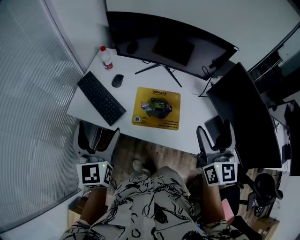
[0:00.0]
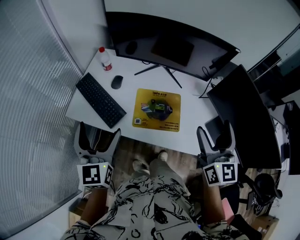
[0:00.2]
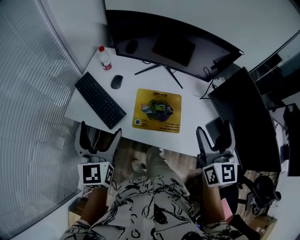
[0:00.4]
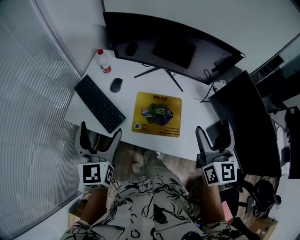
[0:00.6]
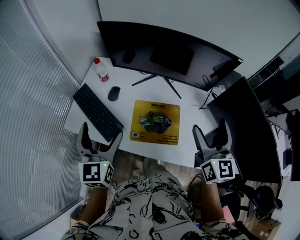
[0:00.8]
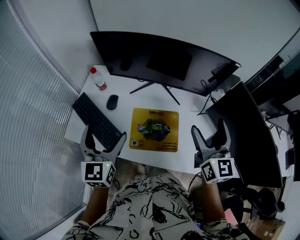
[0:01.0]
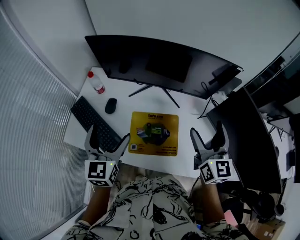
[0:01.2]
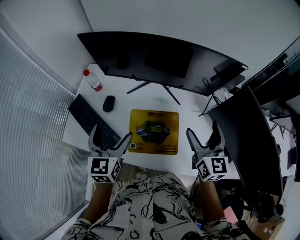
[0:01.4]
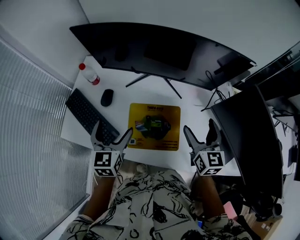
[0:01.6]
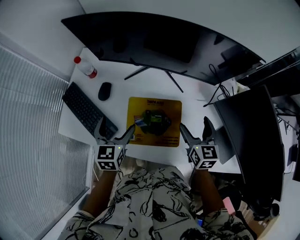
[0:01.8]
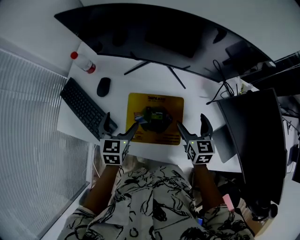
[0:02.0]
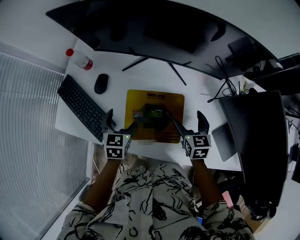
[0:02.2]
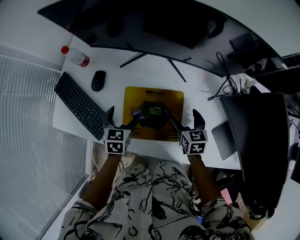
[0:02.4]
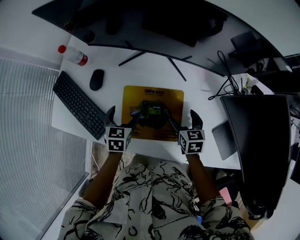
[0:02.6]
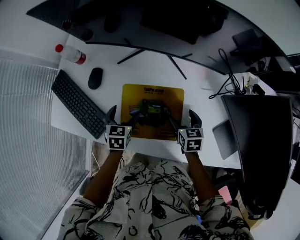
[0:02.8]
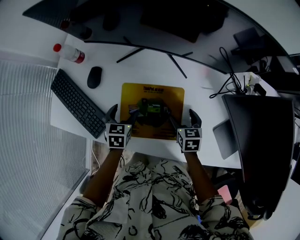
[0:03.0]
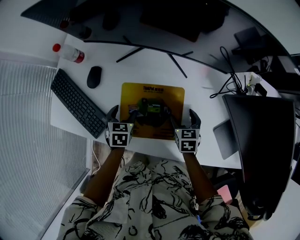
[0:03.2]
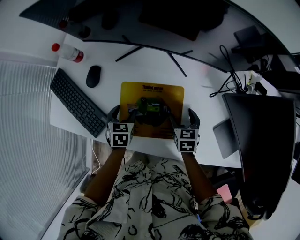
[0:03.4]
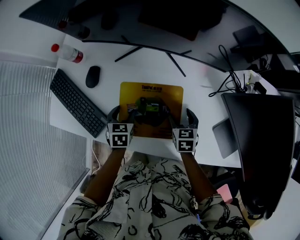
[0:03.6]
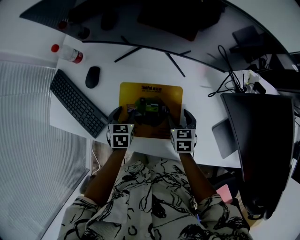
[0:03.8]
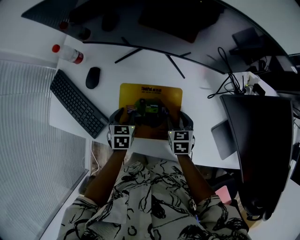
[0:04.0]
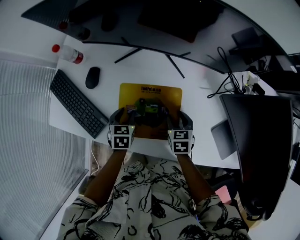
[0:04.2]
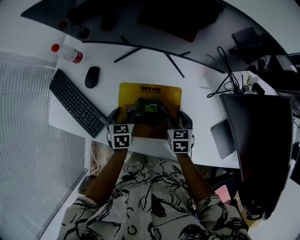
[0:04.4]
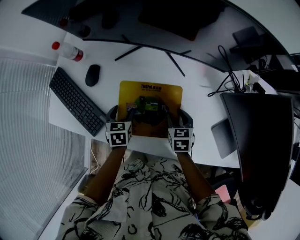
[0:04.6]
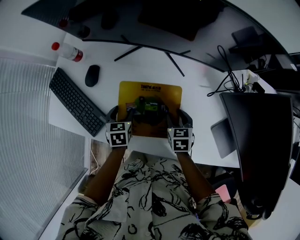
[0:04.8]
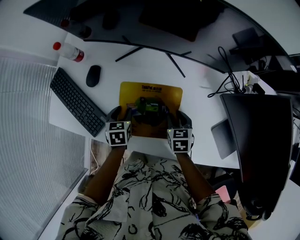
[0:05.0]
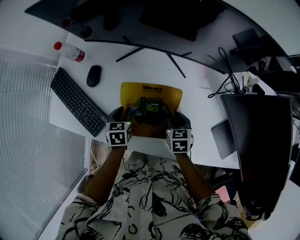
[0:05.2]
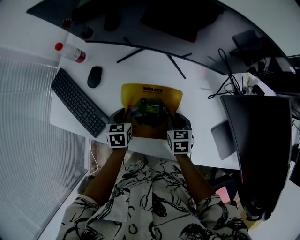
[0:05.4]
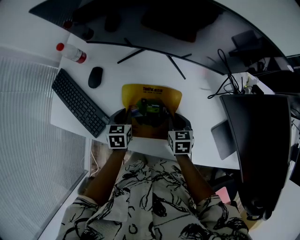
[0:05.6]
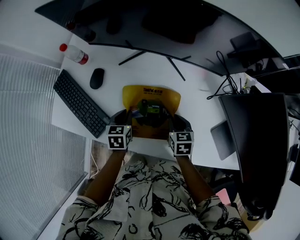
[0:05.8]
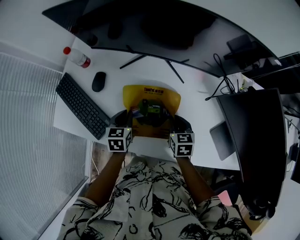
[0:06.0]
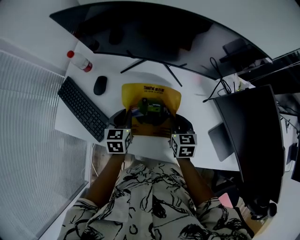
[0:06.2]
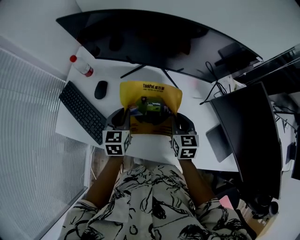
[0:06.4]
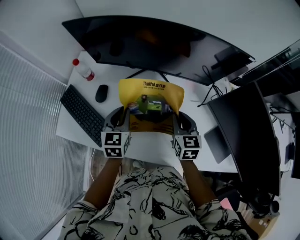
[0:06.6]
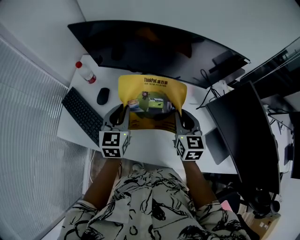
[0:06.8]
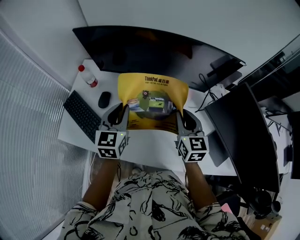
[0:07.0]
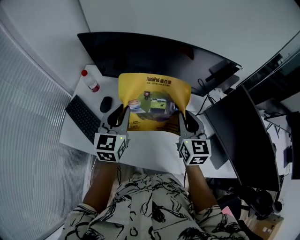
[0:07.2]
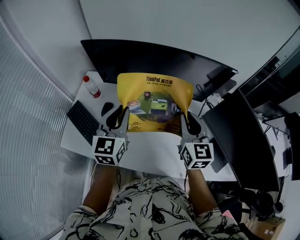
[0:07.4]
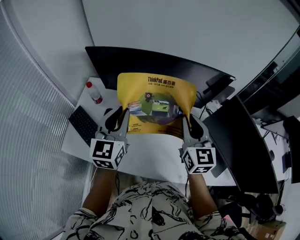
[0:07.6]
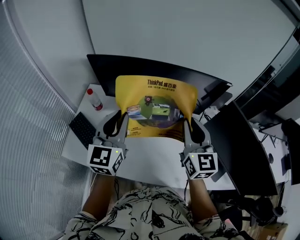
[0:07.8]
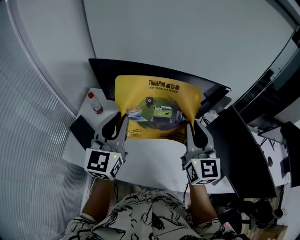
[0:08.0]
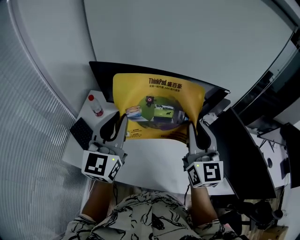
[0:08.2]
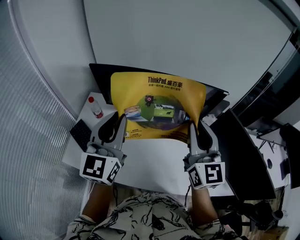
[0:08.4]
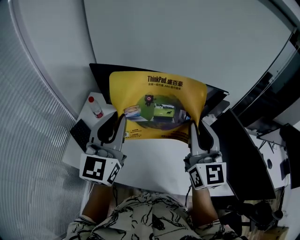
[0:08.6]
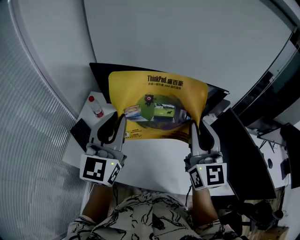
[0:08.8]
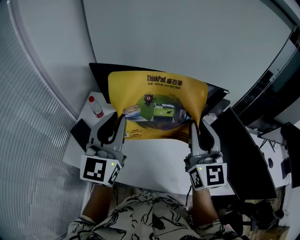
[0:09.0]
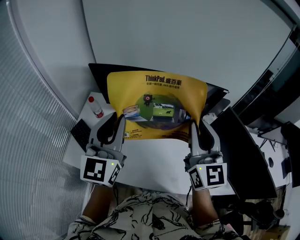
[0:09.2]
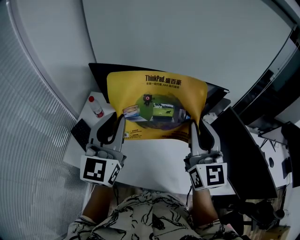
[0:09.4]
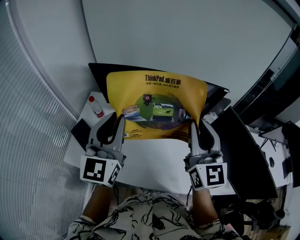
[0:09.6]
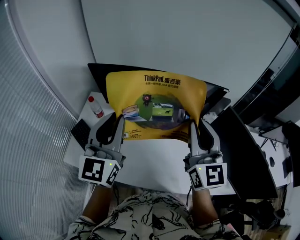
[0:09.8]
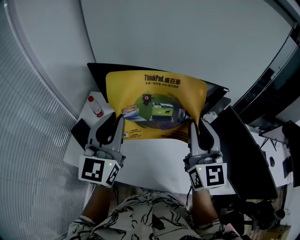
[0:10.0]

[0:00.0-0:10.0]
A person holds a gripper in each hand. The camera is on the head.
0:00.0 to 0:01.4: The left gripper is displaced forward, downward and to the right by roughly 20 cm, while the right gripper heads forward and downward, covering about 20 cm.
0:01.4 to 0:02.8: The grippers both shift downward by roughly 30 cm. The right gripper tilts its fingers about 40 degrees downward; the left gripper points its fingers roughly 30 degrees further downward.
0:02.8 to 0:04.2: The left gripper closes its fingers; the right gripper closes.
0:04.2 to 0:05.8: The grippers move only a little.
0:05.8 to 0:07.2: Both grippers travel together upward, approximately 30 cm. The right gripper tips its fingers upward by about 40 degrees. The left gripper tips its fingers upward by about 40 degrees.
0:07.2 to 0:08.6: The two grippers go about 20 cm upward. The right gripper swivels about 20 degrees, while the left gripper swivels about 20 degrees.
0:08.6 to 0:10.0: Neither gripper changes place.

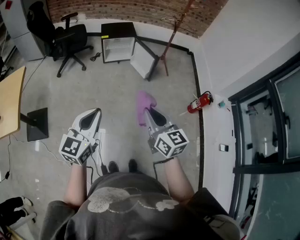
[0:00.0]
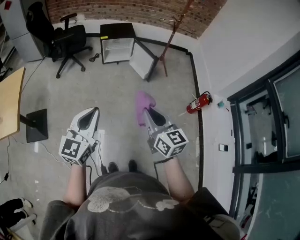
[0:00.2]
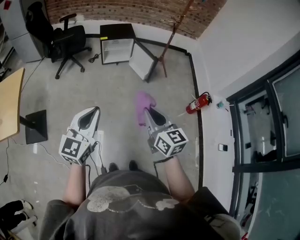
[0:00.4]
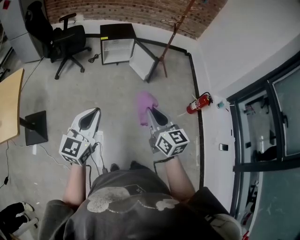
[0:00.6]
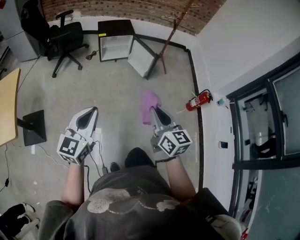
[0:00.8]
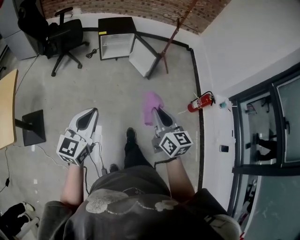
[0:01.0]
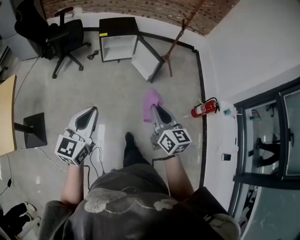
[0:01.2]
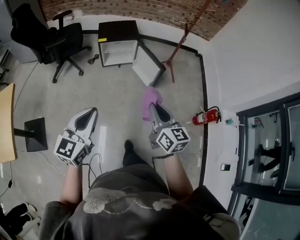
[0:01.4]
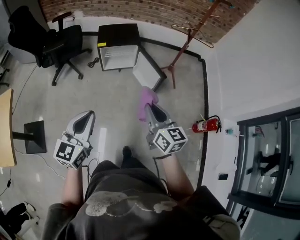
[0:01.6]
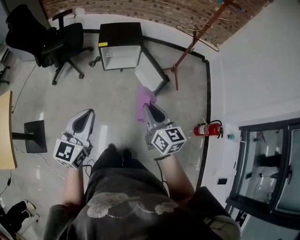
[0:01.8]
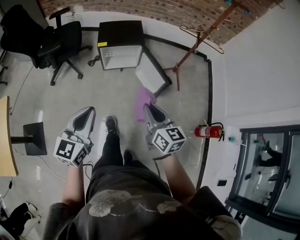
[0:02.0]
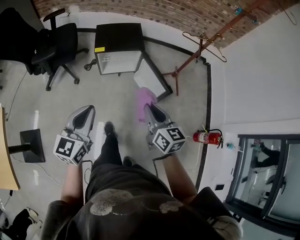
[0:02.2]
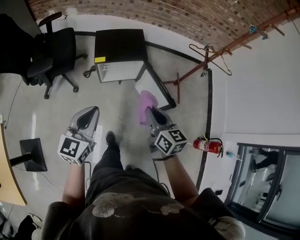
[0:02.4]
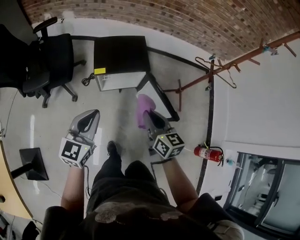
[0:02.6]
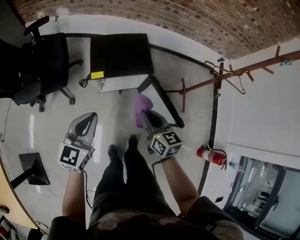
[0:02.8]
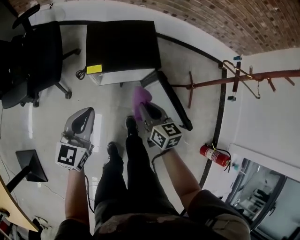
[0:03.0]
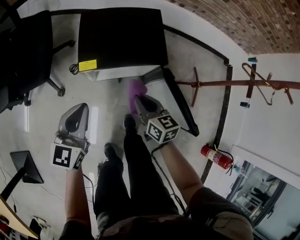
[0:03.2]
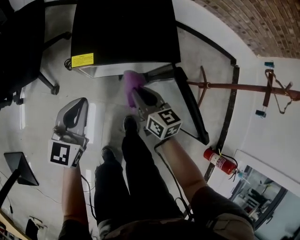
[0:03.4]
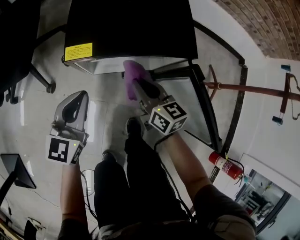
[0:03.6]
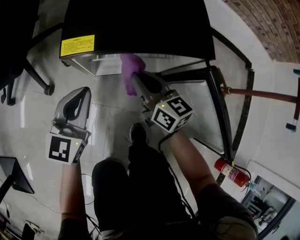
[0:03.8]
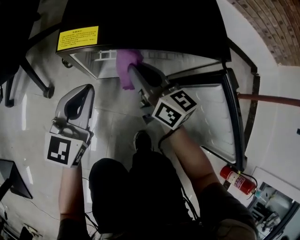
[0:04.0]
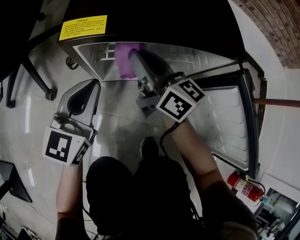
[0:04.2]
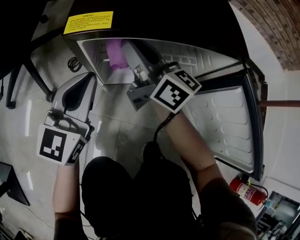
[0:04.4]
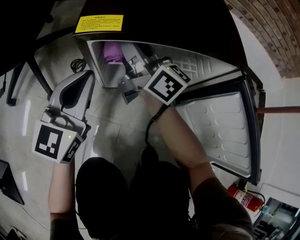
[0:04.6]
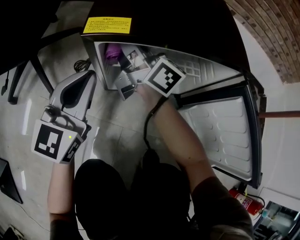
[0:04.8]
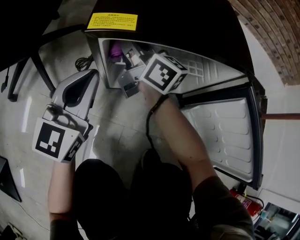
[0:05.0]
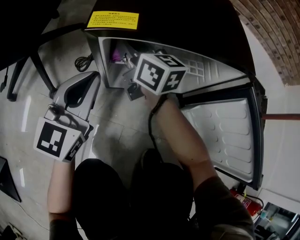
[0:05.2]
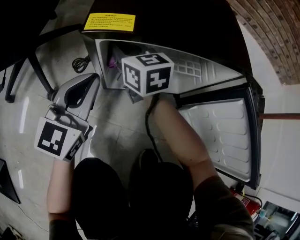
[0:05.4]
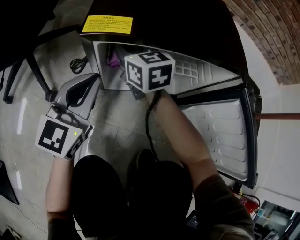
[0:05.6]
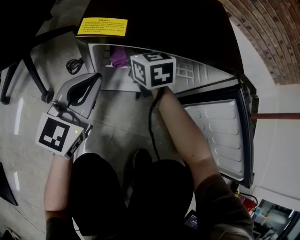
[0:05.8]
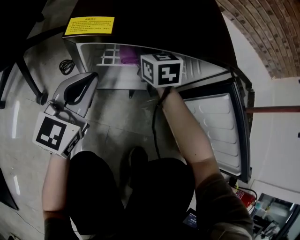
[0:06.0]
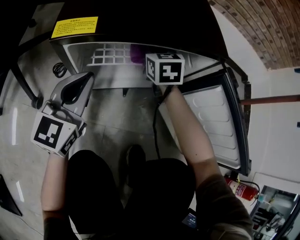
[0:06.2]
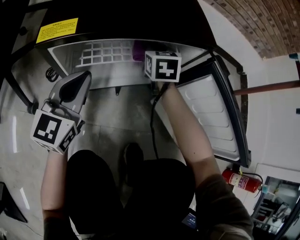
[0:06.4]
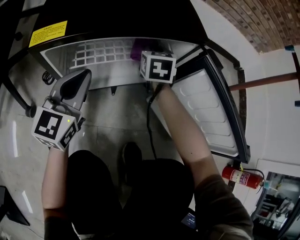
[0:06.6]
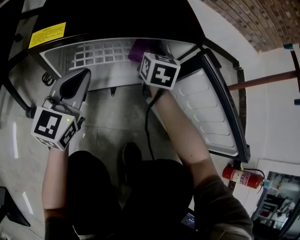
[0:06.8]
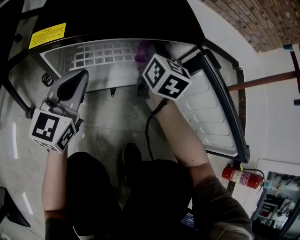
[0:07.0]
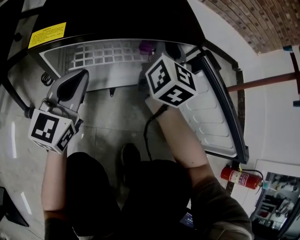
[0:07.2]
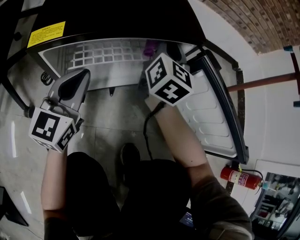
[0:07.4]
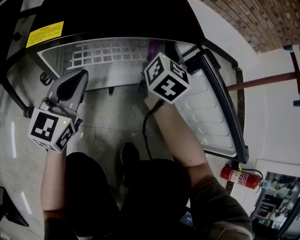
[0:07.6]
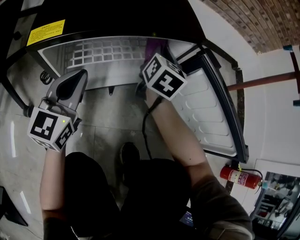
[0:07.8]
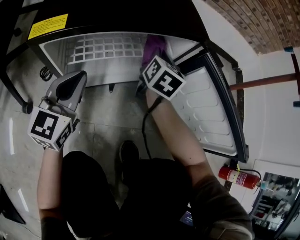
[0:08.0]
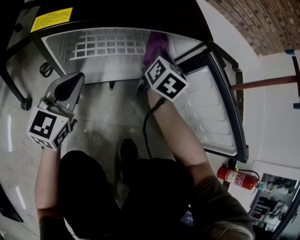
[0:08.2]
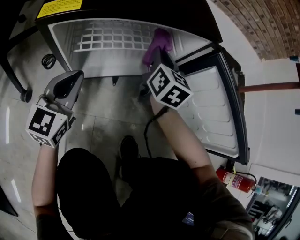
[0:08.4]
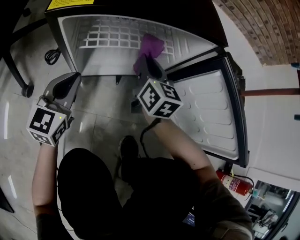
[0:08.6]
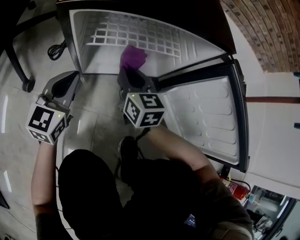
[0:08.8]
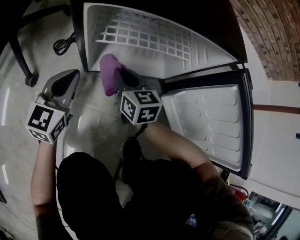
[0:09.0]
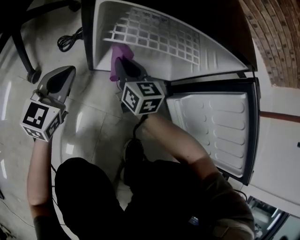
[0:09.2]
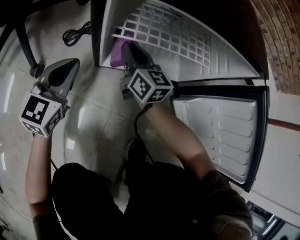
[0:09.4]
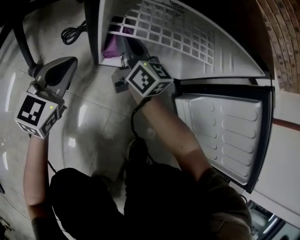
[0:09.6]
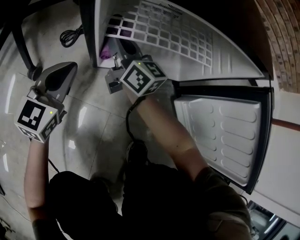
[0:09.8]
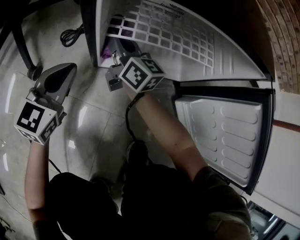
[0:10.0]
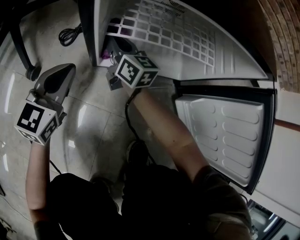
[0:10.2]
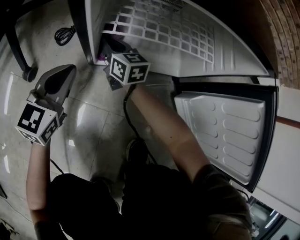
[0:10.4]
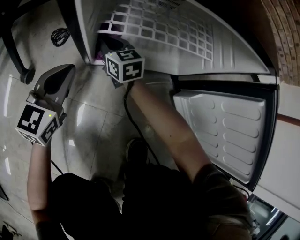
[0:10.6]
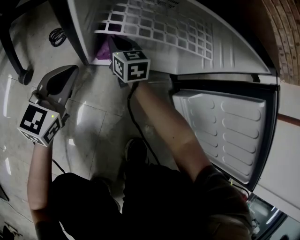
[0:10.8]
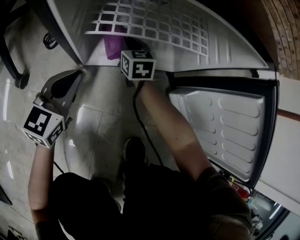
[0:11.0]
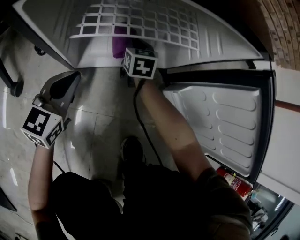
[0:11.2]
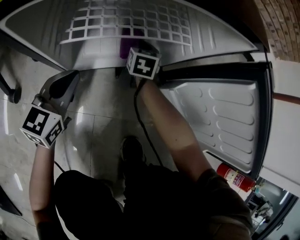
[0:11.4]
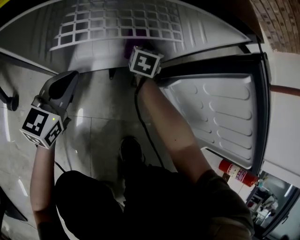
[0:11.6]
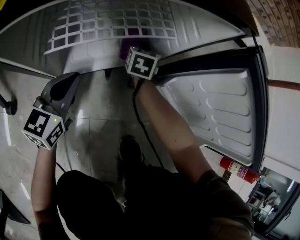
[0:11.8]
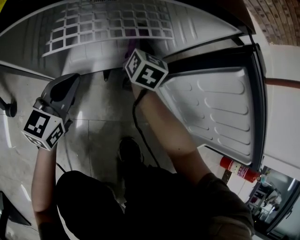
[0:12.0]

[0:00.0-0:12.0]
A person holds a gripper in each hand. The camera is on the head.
0:00.0 to 0:01.6: Both grippers move forward, about 30 cm.
0:01.6 to 0:03.0: The two grippers travel together, forward, roughly 50 cm. The right gripper is displaced downward by about 25 cm.
0:03.0 to 0:04.4: The right gripper shifts some 35 cm downward, forward and to the left, and tips its fingers upward by roughly 40 degrees. The left gripper goes roughly 35 cm downward.
0:04.4 to 0:06.0: The right gripper moves downward, forward and to the right, some 15 cm, and points its fingers some 40 degrees further downward.
0:06.0 to 0:07.6: The left gripper heads to the right, covering approximately 5 cm, while the right gripper moves to the right and upward, some 20 cm, and swivels roughly 50 degrees.
0:07.6 to 0:09.0: The right gripper shifts by some 30 cm, and rotates roughly 50 degrees. Meanwhile the left gripper heads downward, covering some 10 cm.
0:09.0 to 0:10.4: The right gripper goes roughly 15 cm forward, to the left and downward.
0:10.4 to 0:12.0: The right gripper ends up roughly 30 cm from where it was, and rotates some 50 degrees. Meanwhile the left gripper ends up roughly 15 cm from where it was.

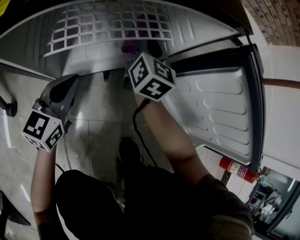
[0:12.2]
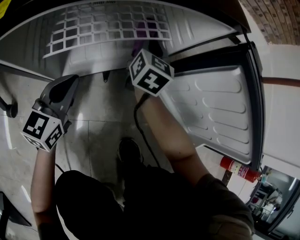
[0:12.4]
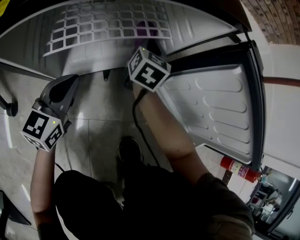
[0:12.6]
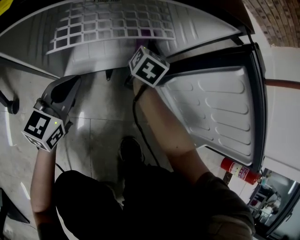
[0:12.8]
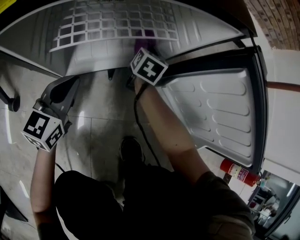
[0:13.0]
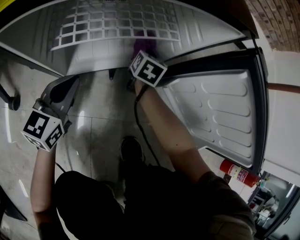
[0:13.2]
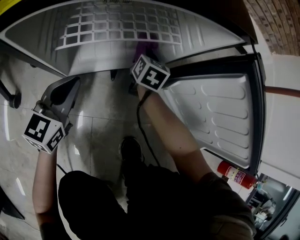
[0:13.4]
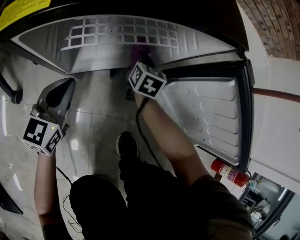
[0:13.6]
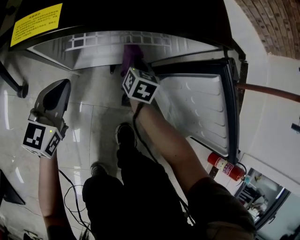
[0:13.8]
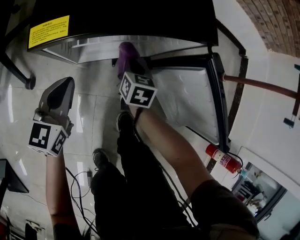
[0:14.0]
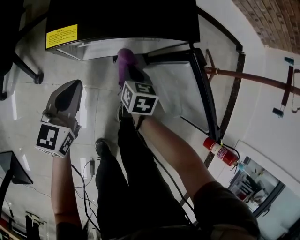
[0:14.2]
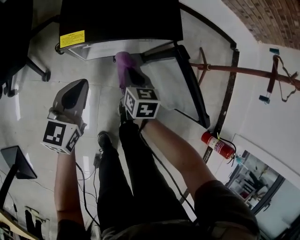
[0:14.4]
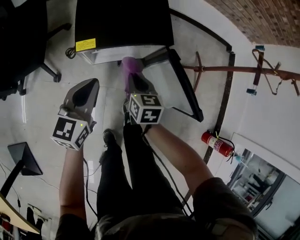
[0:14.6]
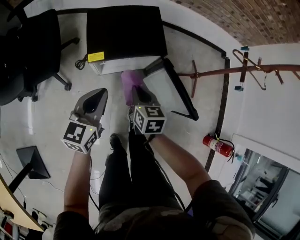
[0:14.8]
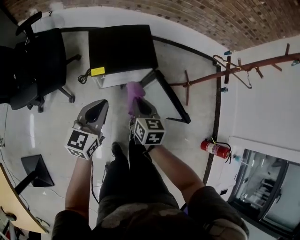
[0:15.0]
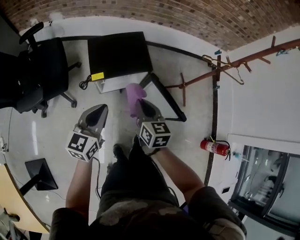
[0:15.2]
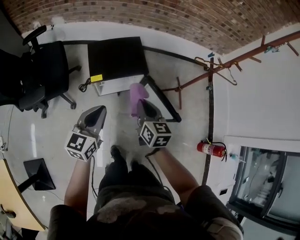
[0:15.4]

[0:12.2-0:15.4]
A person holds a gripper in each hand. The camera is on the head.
0:12.2 to 0:13.8: The left gripper shifts about 10 cm upward and backward. The right gripper is displaced backward and downward by some 10 cm, and turns by about 30 degrees.
0:13.8 to 0:15.4: Both grippers travel together upward, about 60 cm. The right gripper rotates about 20 degrees.
